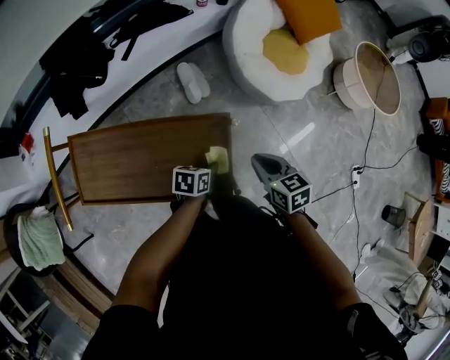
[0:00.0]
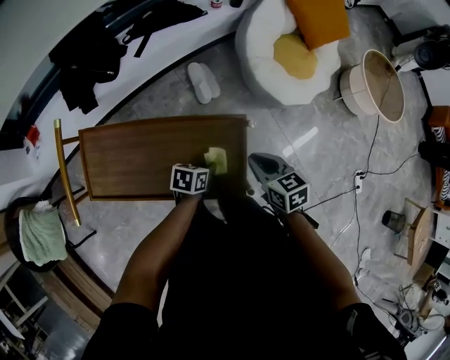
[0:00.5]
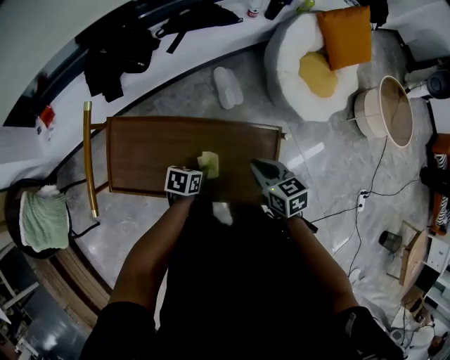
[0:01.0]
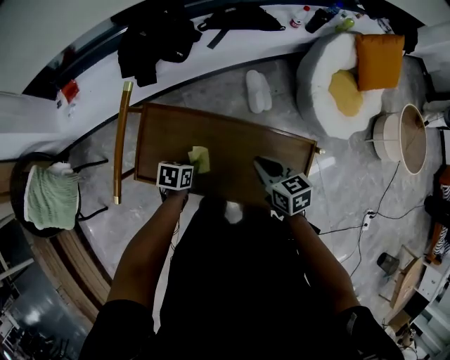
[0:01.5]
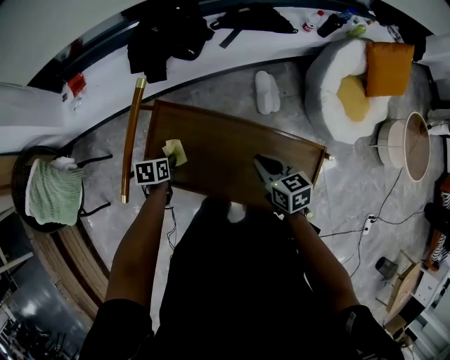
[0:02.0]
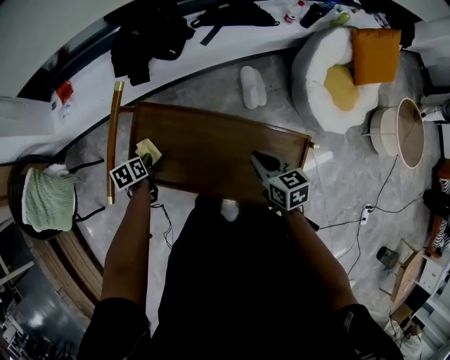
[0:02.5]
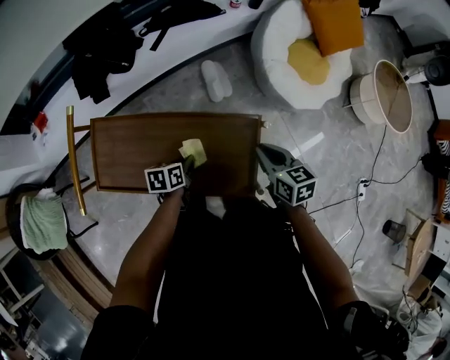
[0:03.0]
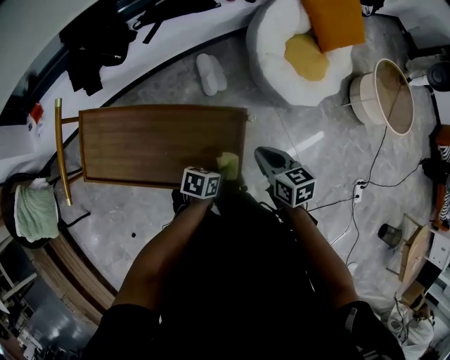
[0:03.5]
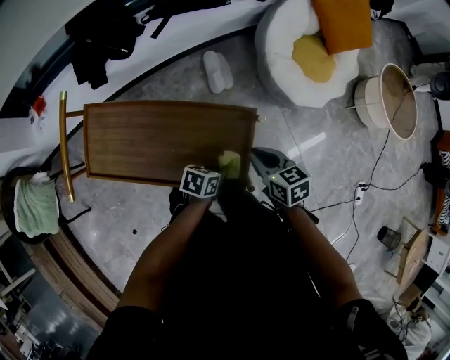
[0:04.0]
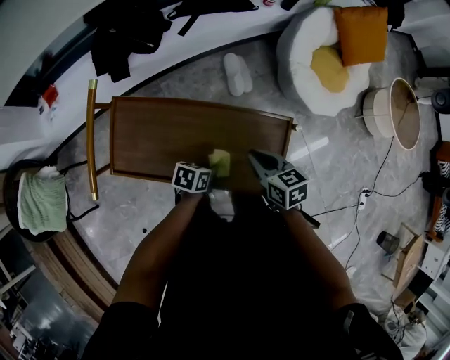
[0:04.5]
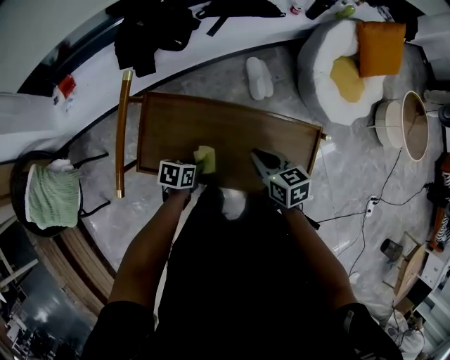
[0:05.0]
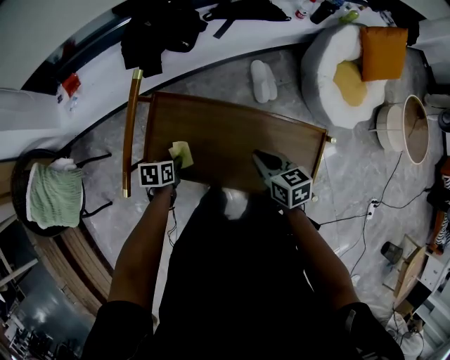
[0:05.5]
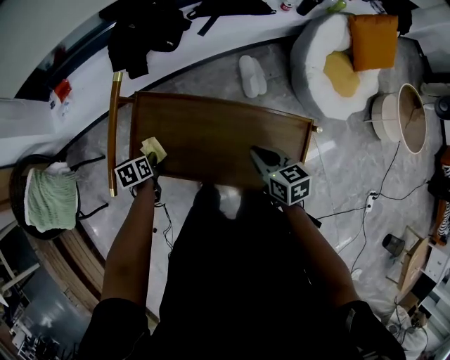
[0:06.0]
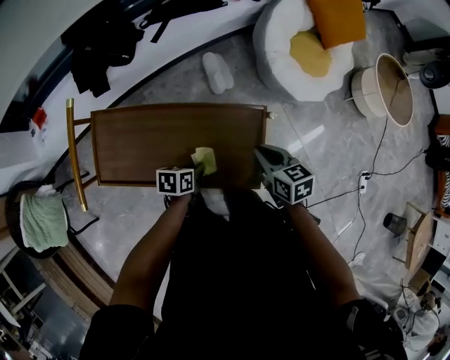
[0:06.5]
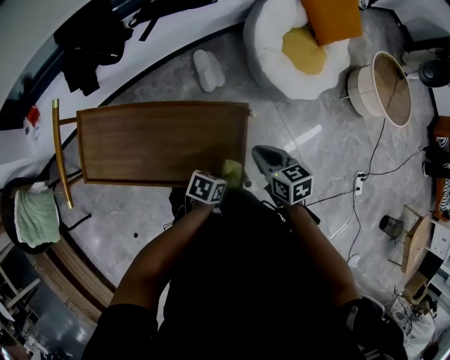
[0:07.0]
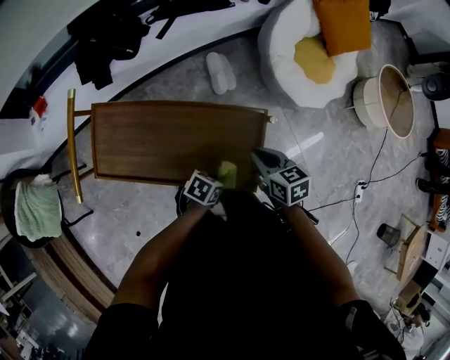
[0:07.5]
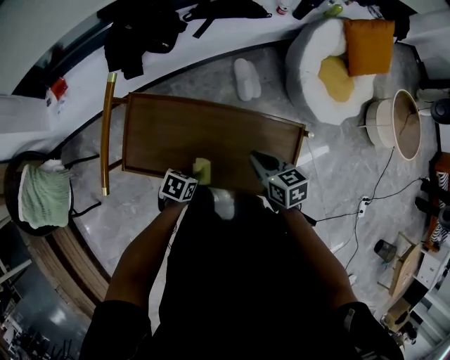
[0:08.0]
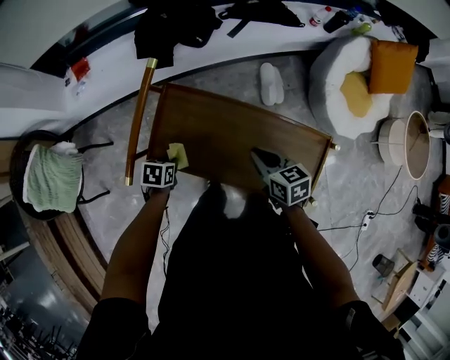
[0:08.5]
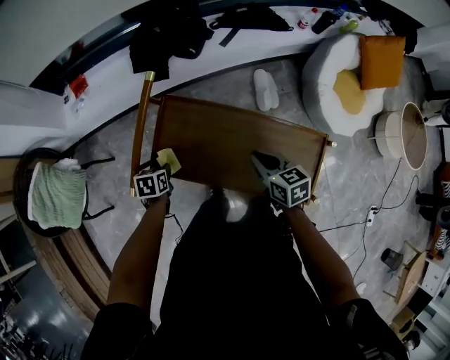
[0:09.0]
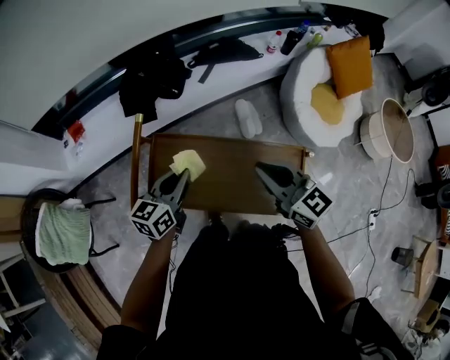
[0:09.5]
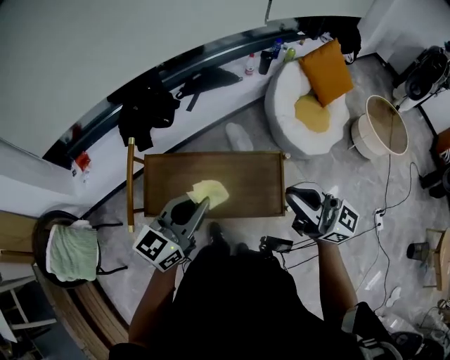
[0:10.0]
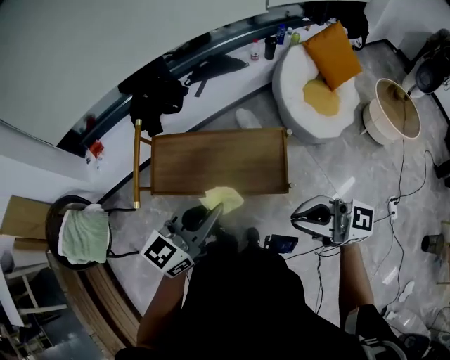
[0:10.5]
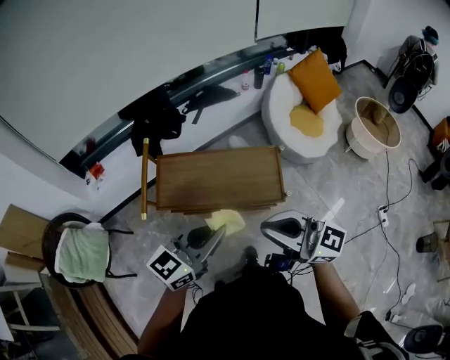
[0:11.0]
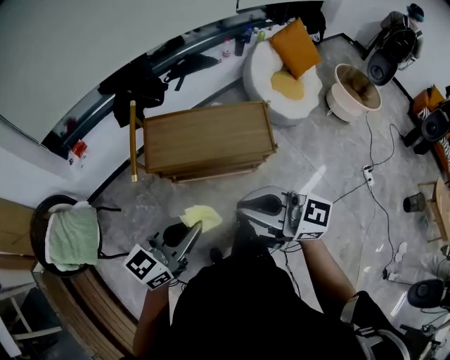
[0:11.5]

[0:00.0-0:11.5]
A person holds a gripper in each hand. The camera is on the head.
0:00.0 to 0:02.0: The right gripper changes place by some 30 cm; the left gripper ends up roughly 50 cm from where it was, and turns by approximately 30 degrees.
0:02.0 to 0:04.0: The right gripper moves some 25 cm. The left gripper ends up approximately 50 cm from where it was, and swivels some 30 degrees.
0:04.0 to 0:06.0: The left gripper moves to the left, about 50 cm, and changes its angle by about 40 degrees, while the right gripper heads to the left, covering roughly 20 cm.
0:06.0 to 0:07.5: The right gripper ends up roughly 15 cm from where it was, while the left gripper moves roughly 40 cm, and rotates approximately 50 degrees.
0:07.5 to 0:09.5: The left gripper moves about 40 cm, and points its fingers approximately 40 degrees further upward, while the right gripper ends up approximately 30 cm from where it was, and tips its fingers upward by approximately 30 degrees.
0:09.5 to 0:11.5: Both grippers are carried backward, roughly 40 cm. The right gripper turns by some 20 degrees. The left gripper turns by approximately 30 degrees.

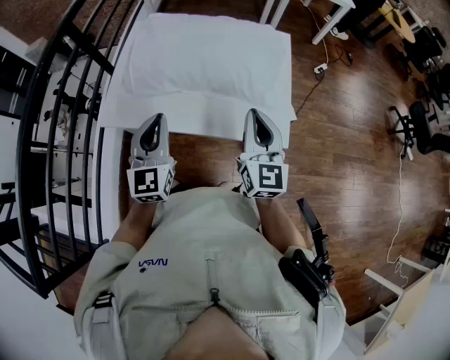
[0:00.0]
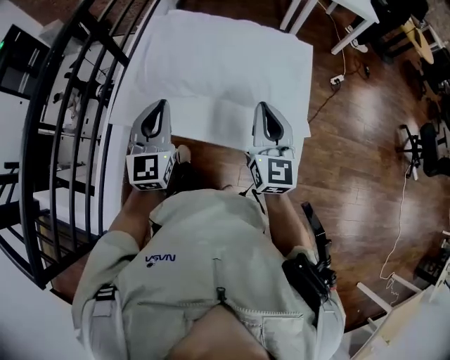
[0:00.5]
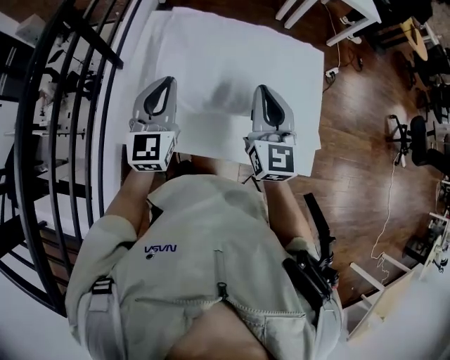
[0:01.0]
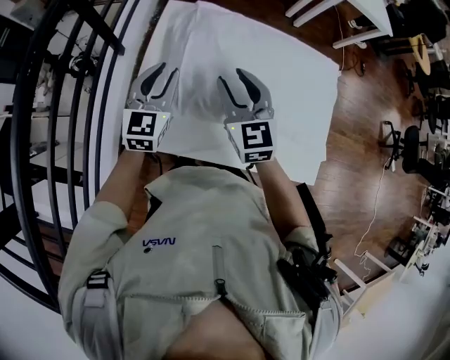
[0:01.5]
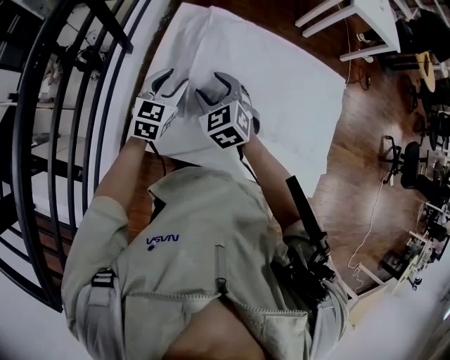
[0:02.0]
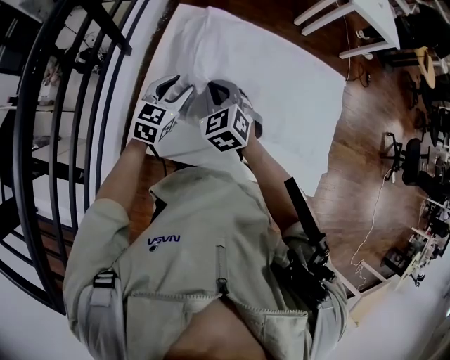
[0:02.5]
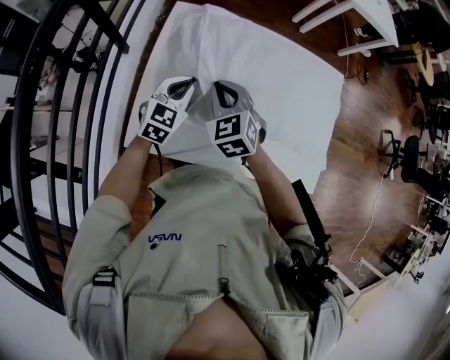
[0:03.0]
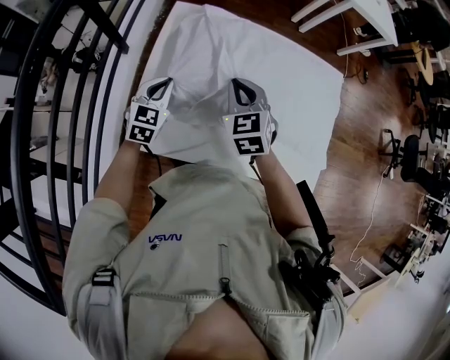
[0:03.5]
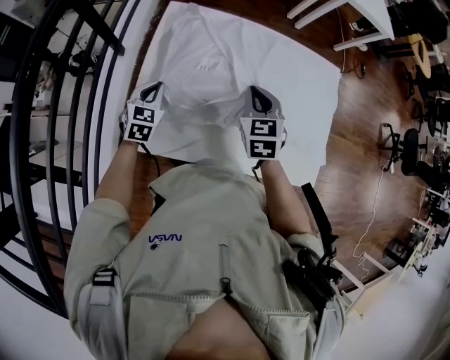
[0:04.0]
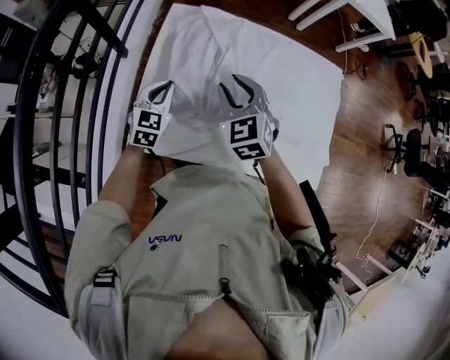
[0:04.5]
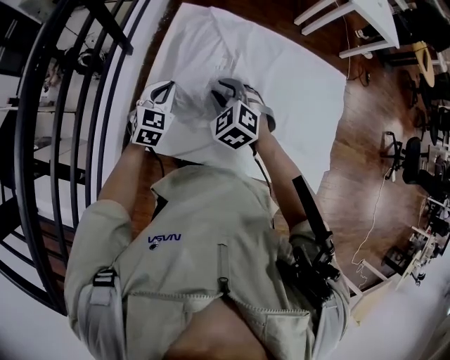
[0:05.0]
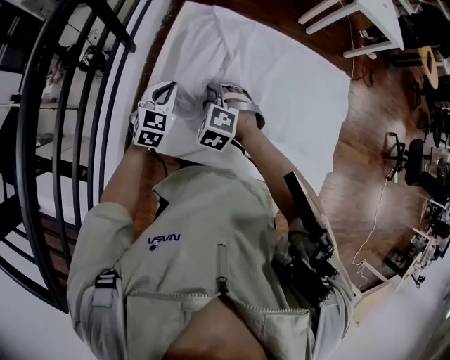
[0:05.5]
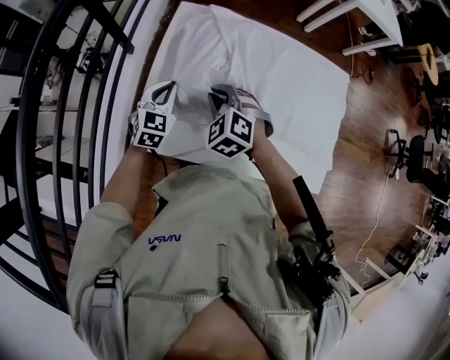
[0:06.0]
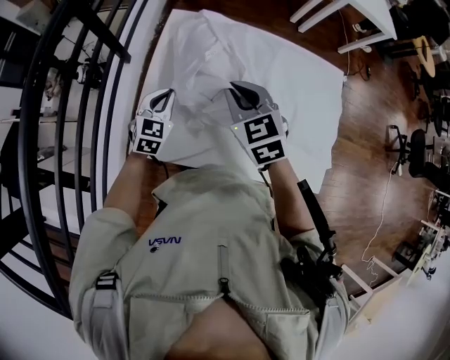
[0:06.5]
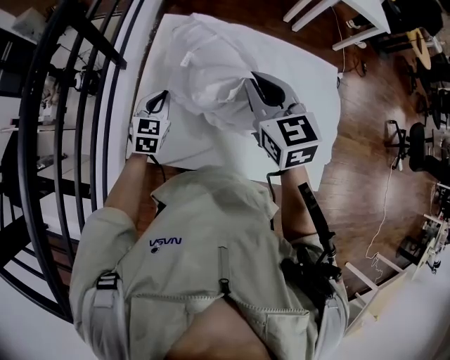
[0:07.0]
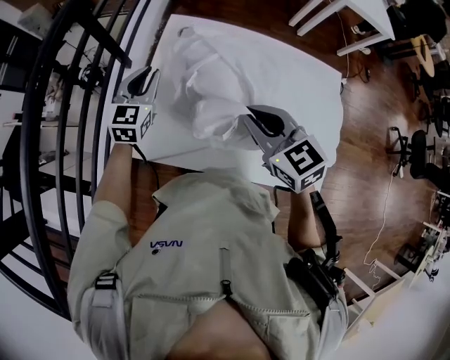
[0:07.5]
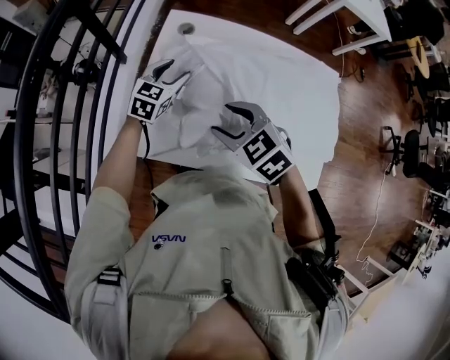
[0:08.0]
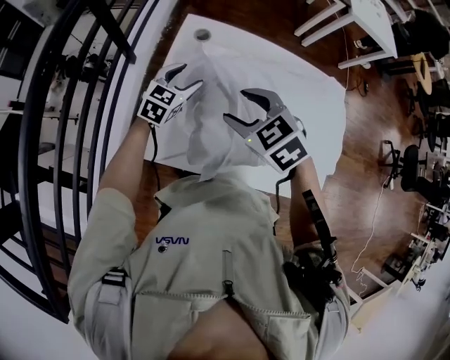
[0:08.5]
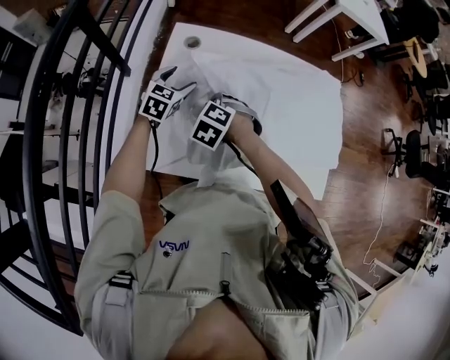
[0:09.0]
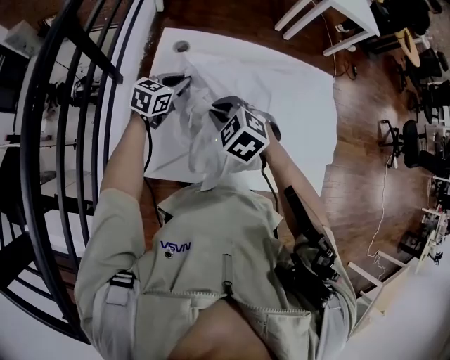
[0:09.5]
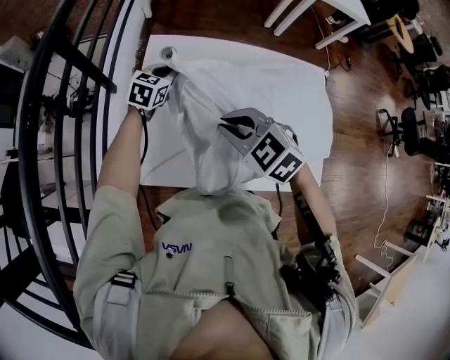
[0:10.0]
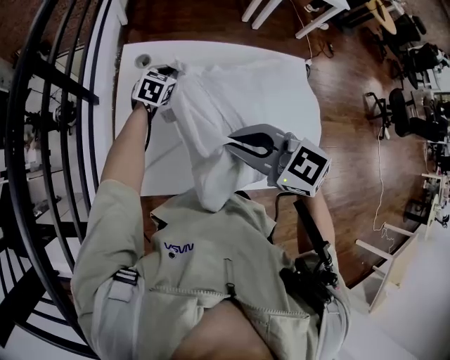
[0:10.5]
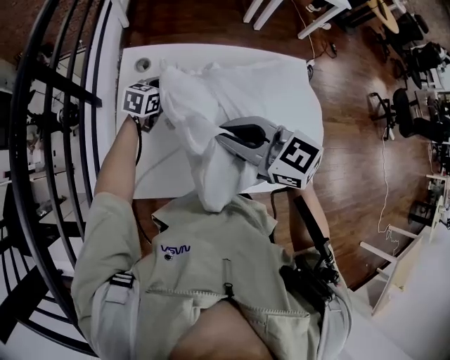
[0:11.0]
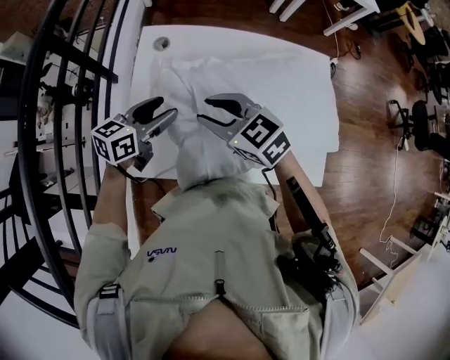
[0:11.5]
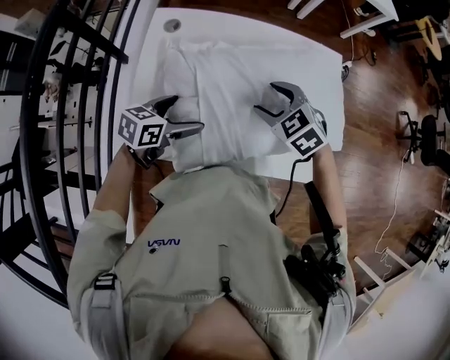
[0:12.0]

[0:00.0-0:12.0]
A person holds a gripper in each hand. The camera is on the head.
0:00.0 to 0:02.0: The right gripper travels to the left and forward by about 40 cm, tips its fingers downward by about 40 degrees, and opens its fingers. Meanwhile the left gripper goes roughly 35 cm forward, to the left and downward, swivels roughly 30 degrees, and opens up.
0:02.0 to 0:04.0: The left gripper moves downward, about 5 cm, and closes its fingers, while the right gripper shifts roughly 15 cm to the right, rotates approximately 30 degrees, and closes up.
0:04.0 to 0:06.0: The right gripper moves to the left, about 15 cm, turns by approximately 40 degrees, and opens, then closes again.
0:06.0 to 0:08.0: The left gripper shifts some 5 cm forward, goes upward and returns, some 10 cm each way, and opens its fingers. The right gripper shifts some 10 cm backward and upward, swivels about 30 degrees, and opens up.
0:08.0 to 0:10.0: The right gripper moves some 10 cm downward and comes back, and closes; the left gripper shifts about 10 cm forward, and closes.
0:10.0 to 0:12.0: The right gripper goes left and right, some 15 cm each way, reversing 2 times, and opens. Meanwhile the left gripper shifts some 25 cm backward, turns by approximately 30 degrees, and opens.

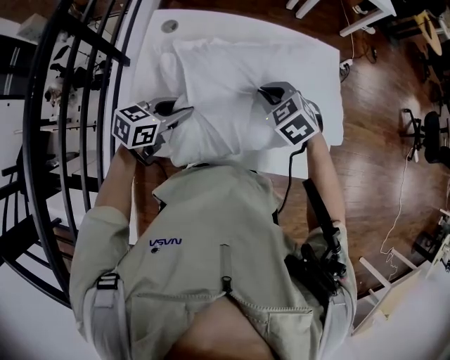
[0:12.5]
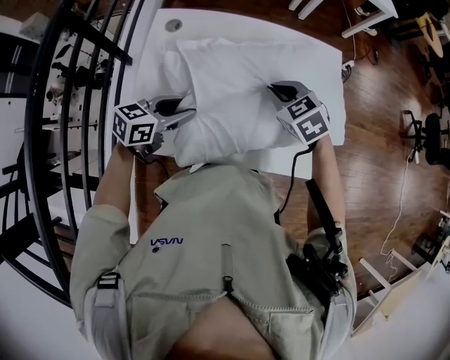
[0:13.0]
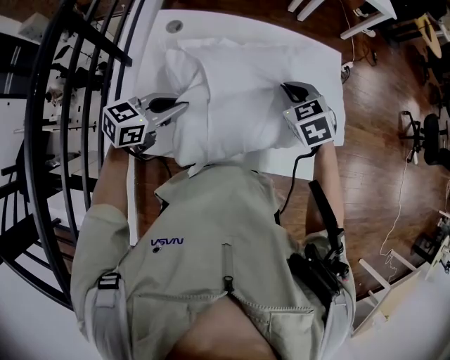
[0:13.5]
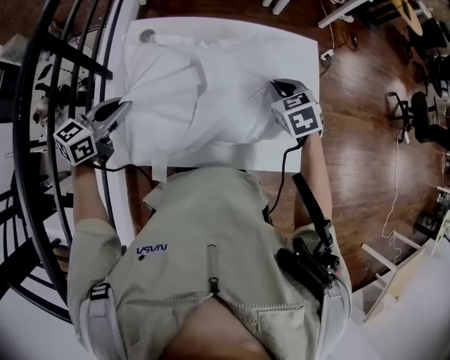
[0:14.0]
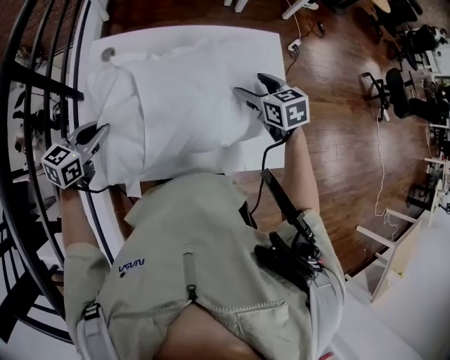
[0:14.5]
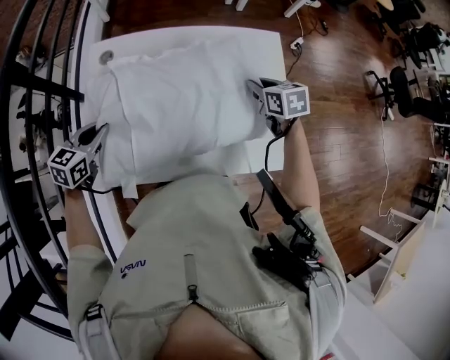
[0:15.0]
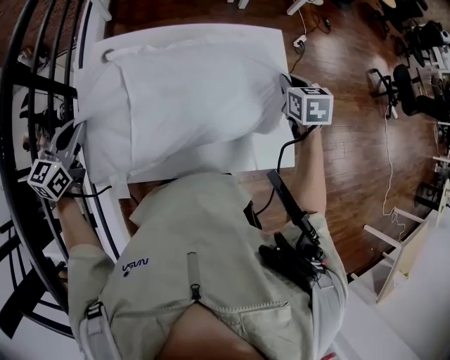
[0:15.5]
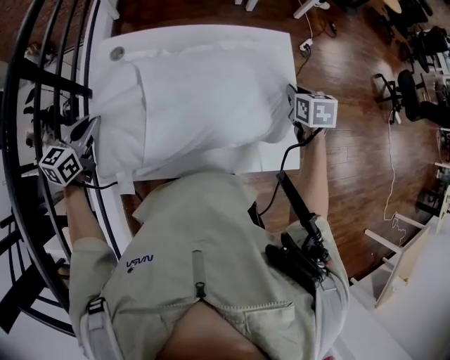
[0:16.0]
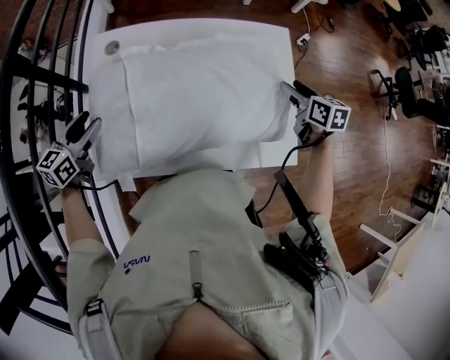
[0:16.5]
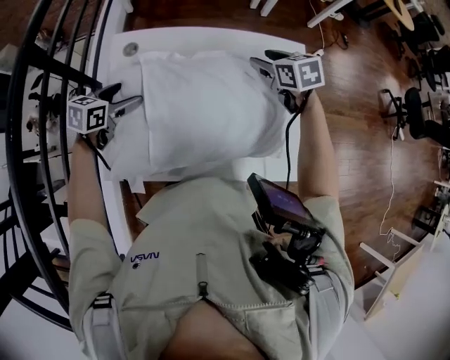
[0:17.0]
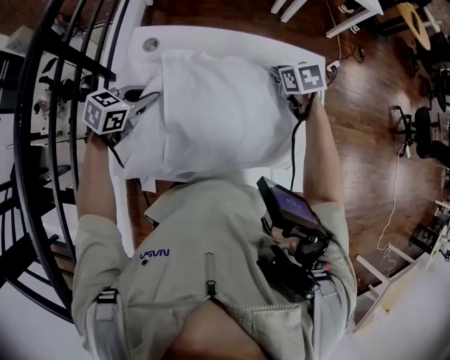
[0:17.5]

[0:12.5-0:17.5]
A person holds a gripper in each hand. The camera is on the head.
0:12.5 to 0:15.0: The right gripper goes about 20 cm to the right and forward, rotates around the line of its fingers by about 50 degrees, clockwise from behind, and opens, then closes again; the left gripper moves to the left, about 10 cm.
0:15.0 to 0:17.5: The left gripper travels forward by about 5 cm, moves approximately 10 cm upward and comes back, and opens and closes again, while the right gripper heads to the left and forward, covering roughly 10 cm, and opens, then closes once more.
